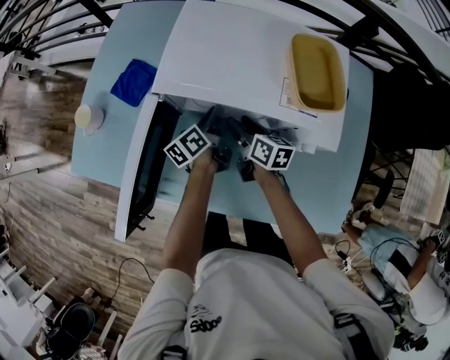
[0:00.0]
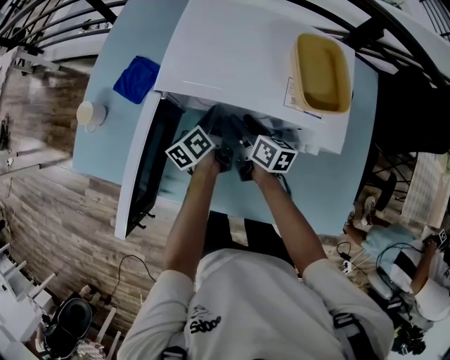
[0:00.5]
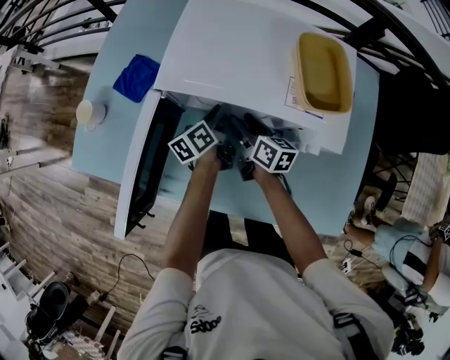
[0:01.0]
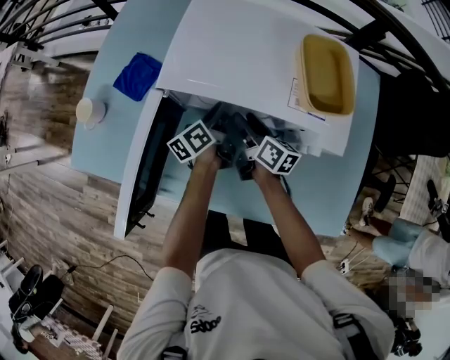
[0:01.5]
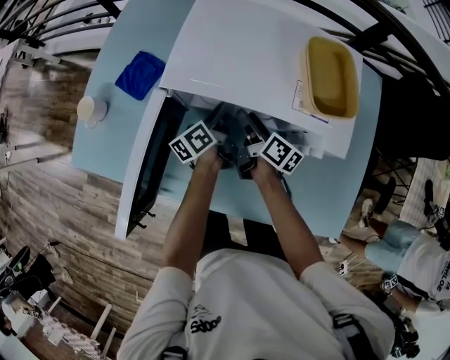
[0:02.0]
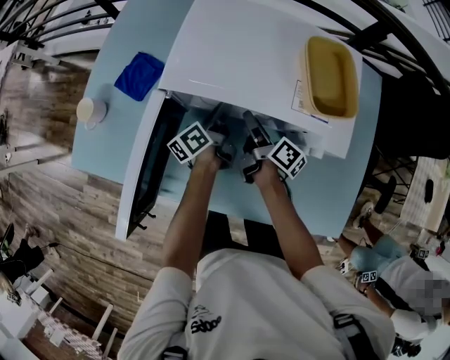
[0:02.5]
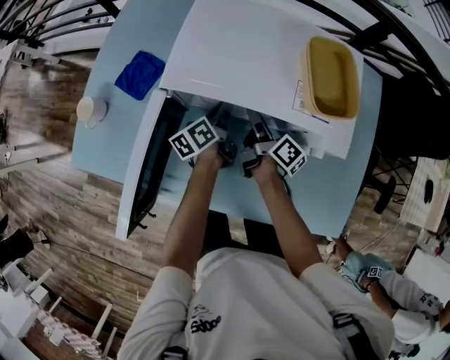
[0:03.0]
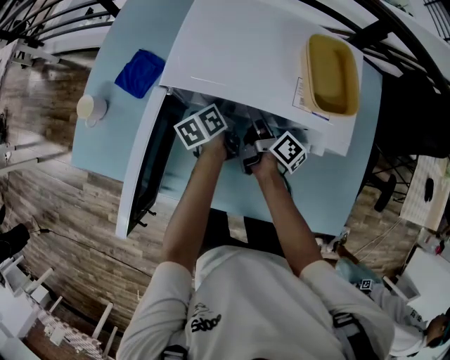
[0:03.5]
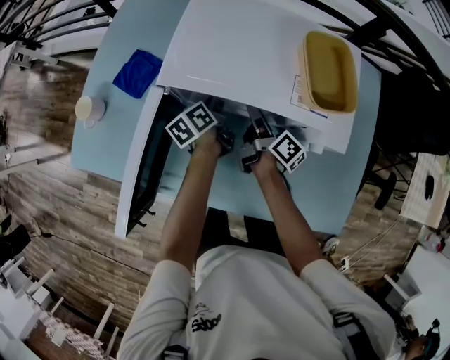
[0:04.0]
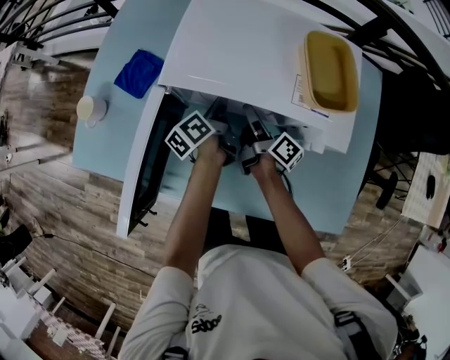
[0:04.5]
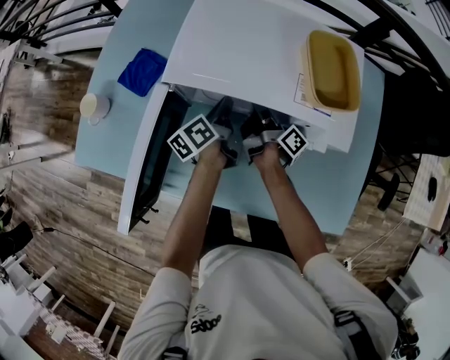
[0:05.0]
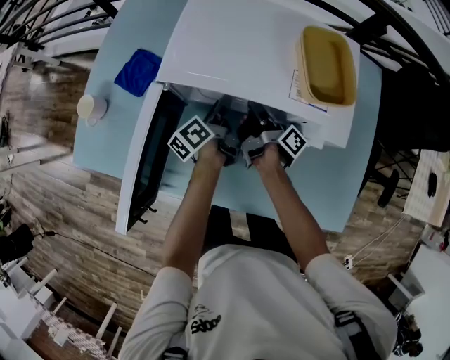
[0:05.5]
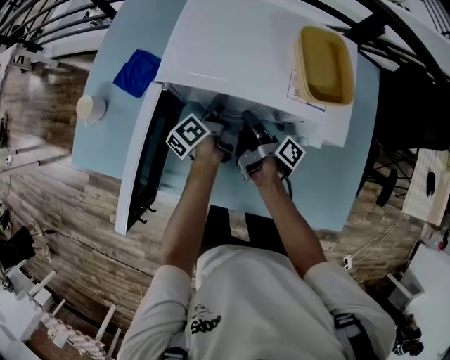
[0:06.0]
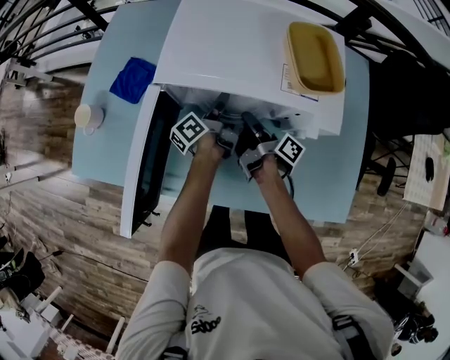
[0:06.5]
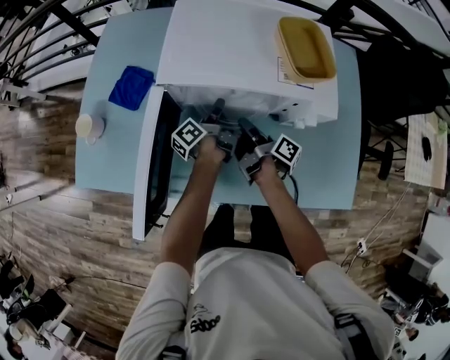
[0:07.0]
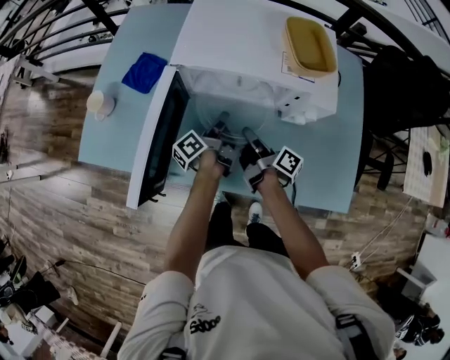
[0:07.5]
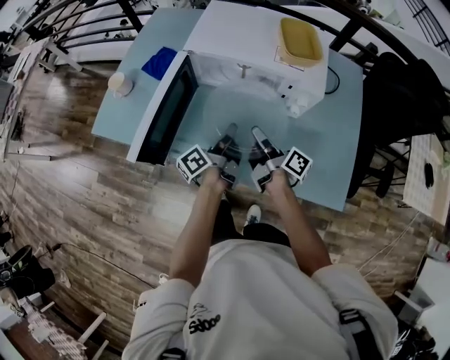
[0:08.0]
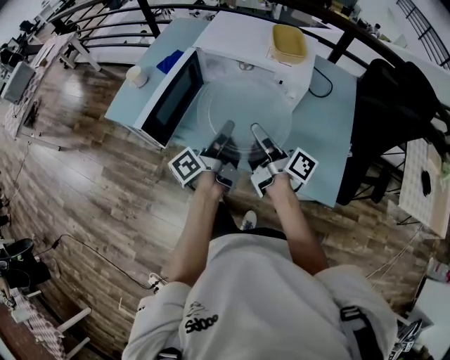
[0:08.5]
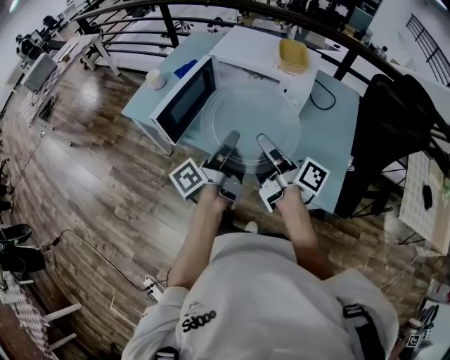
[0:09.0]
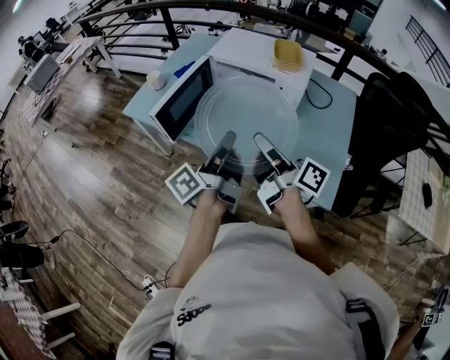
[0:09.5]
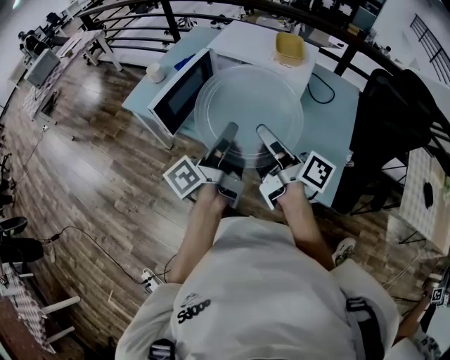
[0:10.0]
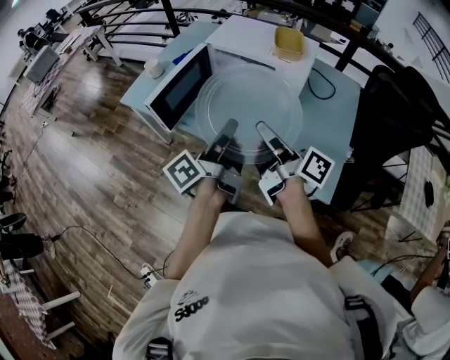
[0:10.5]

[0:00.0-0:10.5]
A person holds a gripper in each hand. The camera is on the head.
0:00.0 to 0:02.0: The right gripper turns by about 20 degrees.
0:02.0 to 0:04.0: The left gripper closes.
0:04.0 to 0:06.5: The right gripper changes its angle by approximately 20 degrees, and closes up. The left gripper swivels about 30 degrees.
0:06.5 to 0:08.5: Both grippers move backward and upward, roughly 35 cm. The left gripper turns by approximately 20 degrees. The right gripper swivels some 30 degrees.
0:08.5 to 0:10.5: Both grippers travel together backward and upward, roughly 15 cm.

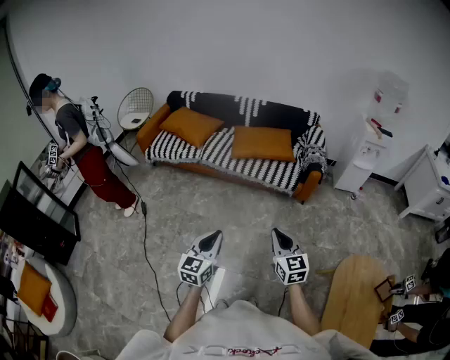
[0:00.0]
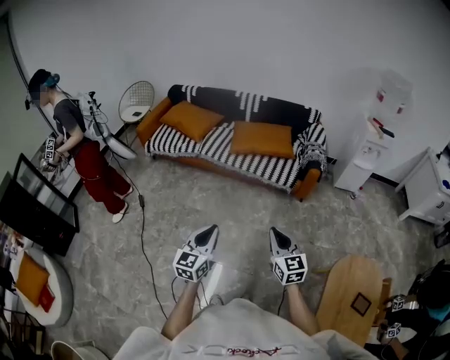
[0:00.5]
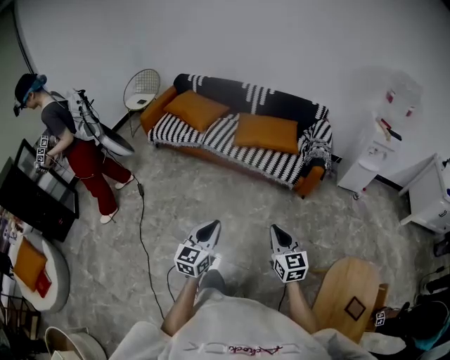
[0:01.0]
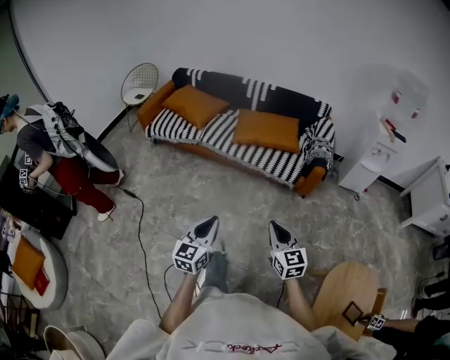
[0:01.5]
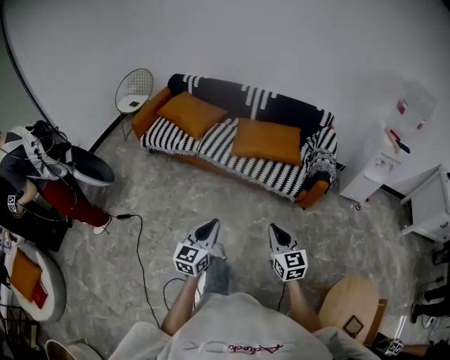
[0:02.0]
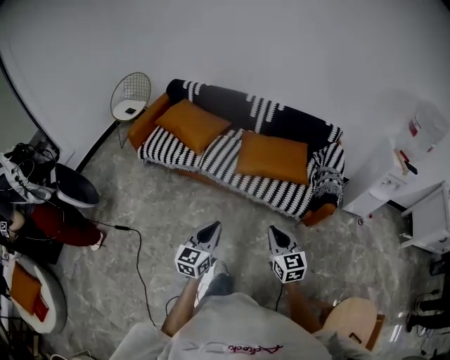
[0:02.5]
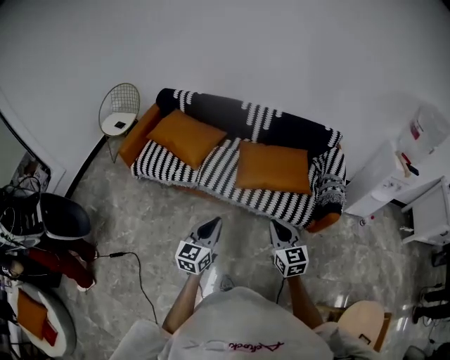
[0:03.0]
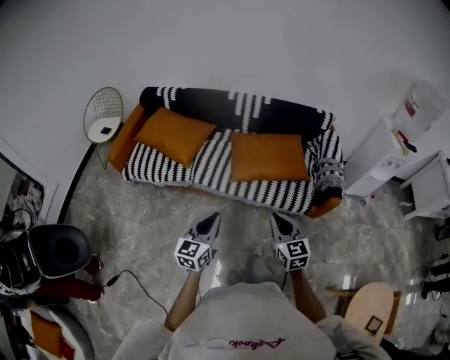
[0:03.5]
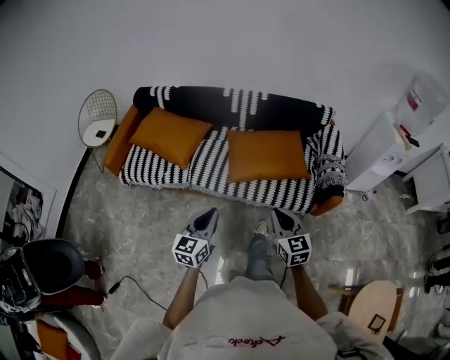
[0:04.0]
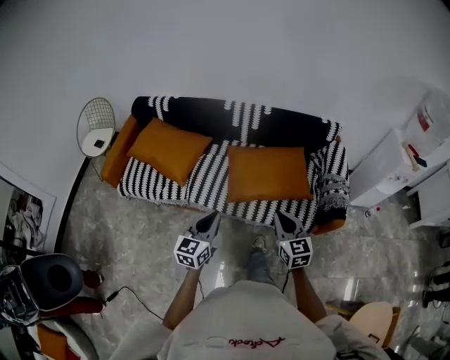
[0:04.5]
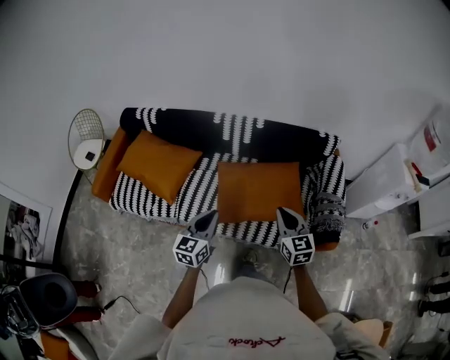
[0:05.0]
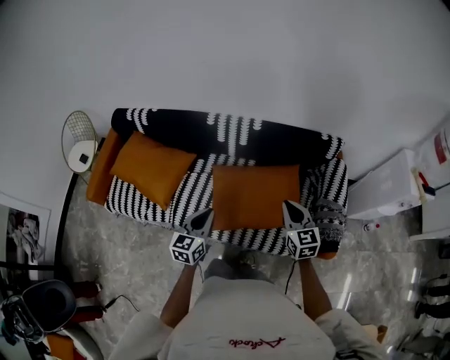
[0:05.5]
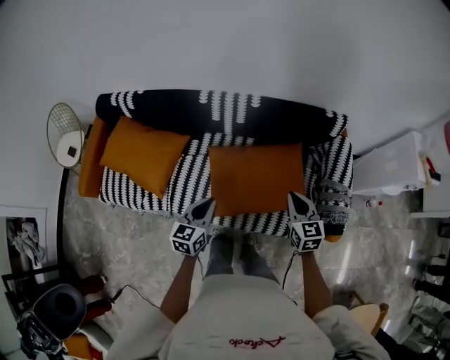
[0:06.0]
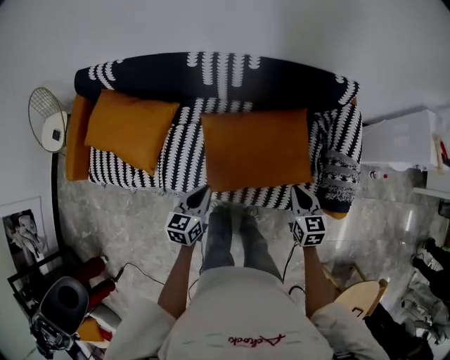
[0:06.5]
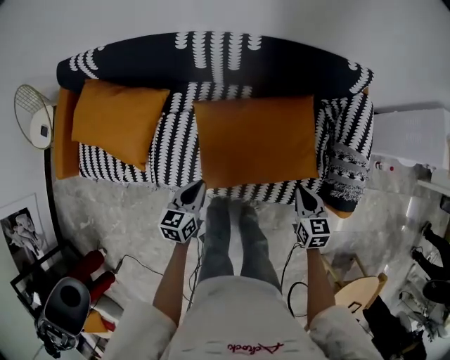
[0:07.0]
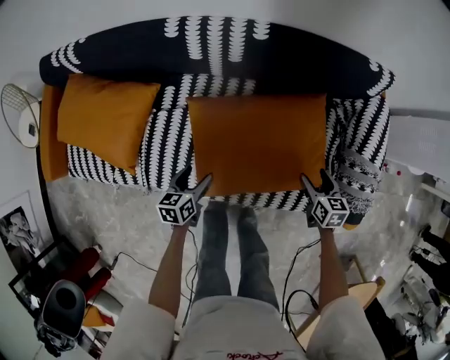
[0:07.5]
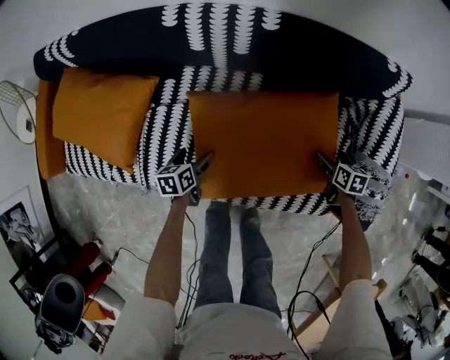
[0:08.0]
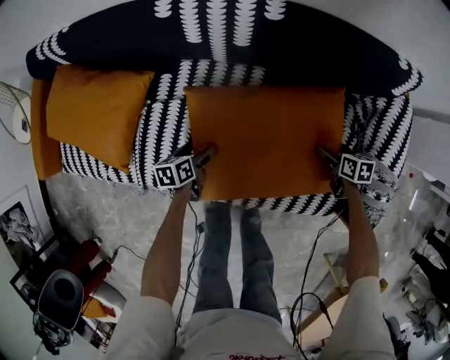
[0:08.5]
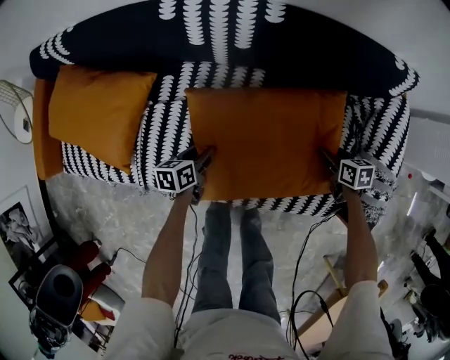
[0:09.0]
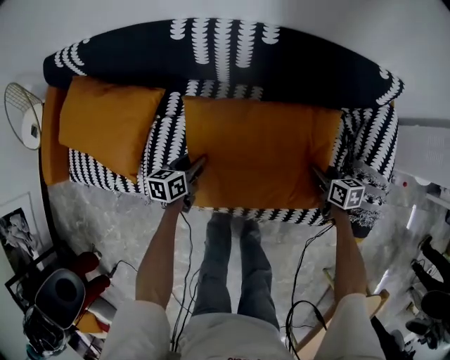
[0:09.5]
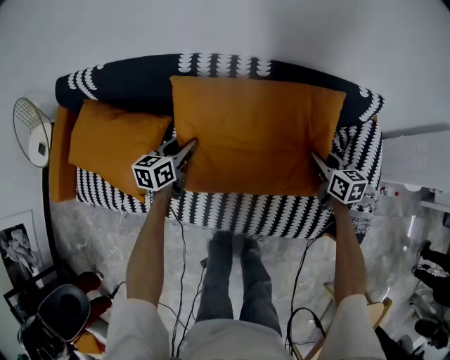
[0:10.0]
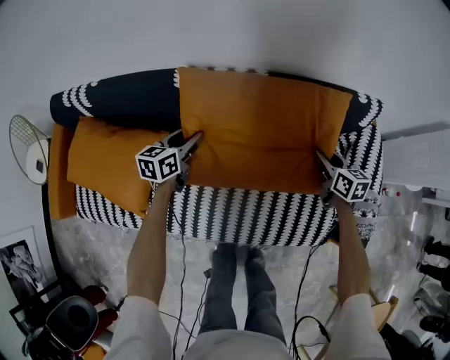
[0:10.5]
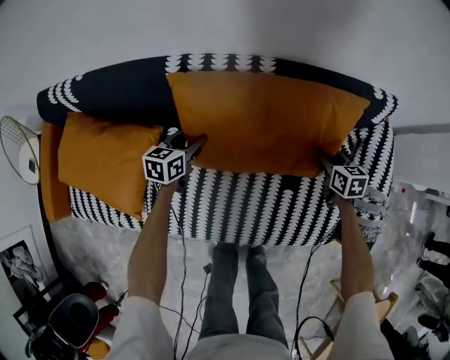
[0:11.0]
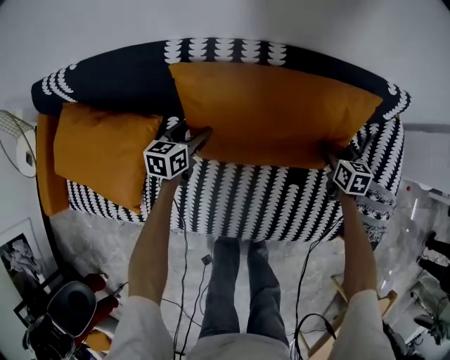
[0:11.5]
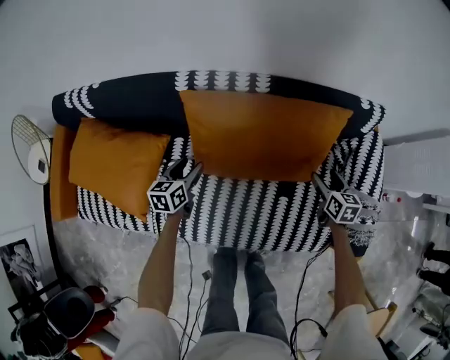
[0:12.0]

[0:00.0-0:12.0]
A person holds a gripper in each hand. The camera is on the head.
0:00.0 to 0:02.0: The two grippers go some 15 cm forward.
0:02.0 to 0:04.0: Both grippers travel together forward, approximately 35 cm.
0:04.0 to 0:06.0: The pair of grippers is taken forward, approximately 40 cm.
0:06.0 to 0:08.0: The grippers both shift downward by about 35 cm. The right gripper tips its fingers downward by approximately 30 degrees, and opens up, while the left gripper changes its angle by some 40 degrees, and opens.
0:08.0 to 0:10.0: The right gripper shifts about 20 cm upward, to the left and forward, rotates some 20 degrees, and closes, while the left gripper shifts about 20 cm upward and forward, changes its angle by approximately 30 degrees, and closes up.
0:10.0 to 0:12.0: The left gripper shifts some 5 cm downward. Meanwhile the right gripper is displaced downward and to the right by roughly 10 cm, and opens its fingers.

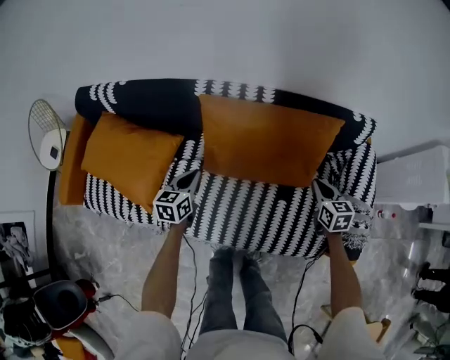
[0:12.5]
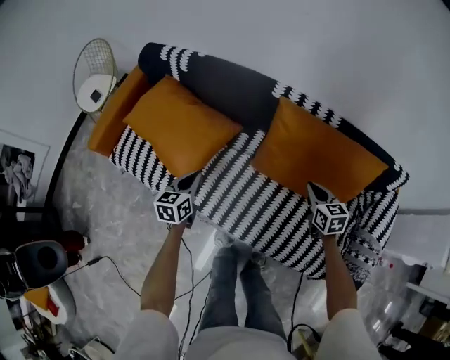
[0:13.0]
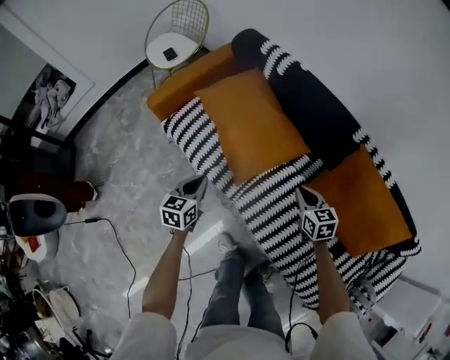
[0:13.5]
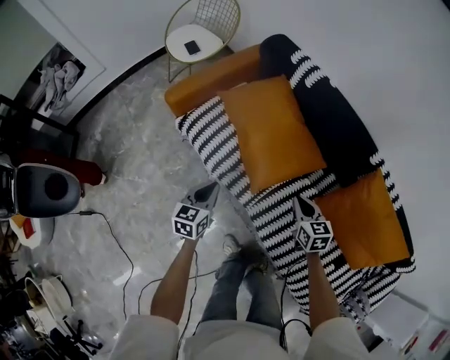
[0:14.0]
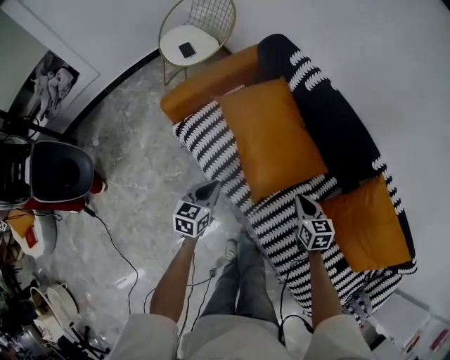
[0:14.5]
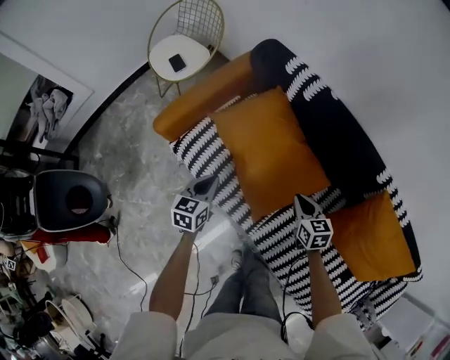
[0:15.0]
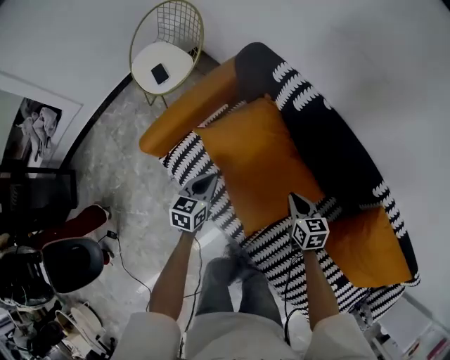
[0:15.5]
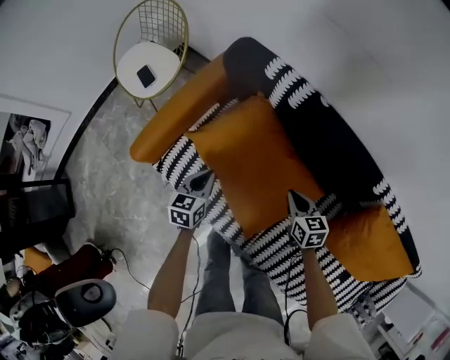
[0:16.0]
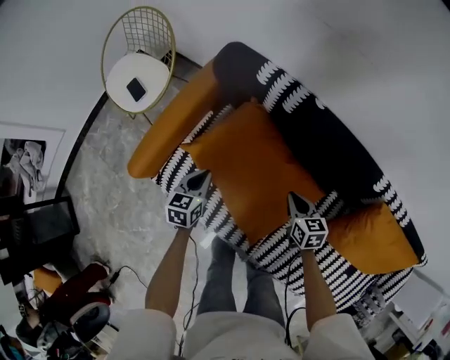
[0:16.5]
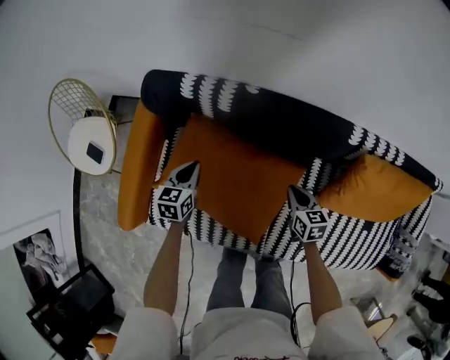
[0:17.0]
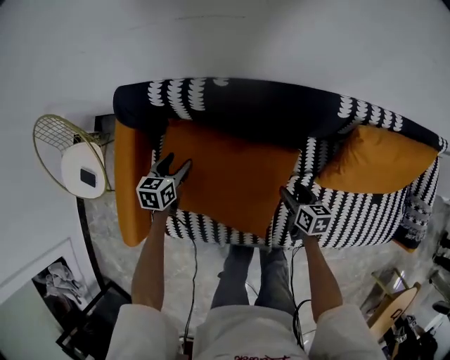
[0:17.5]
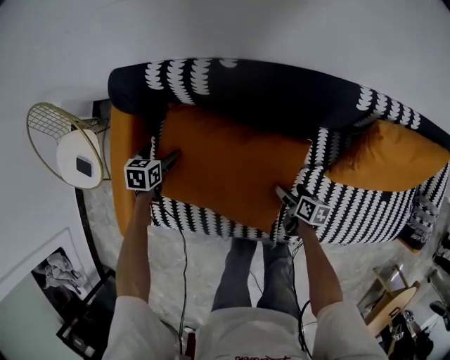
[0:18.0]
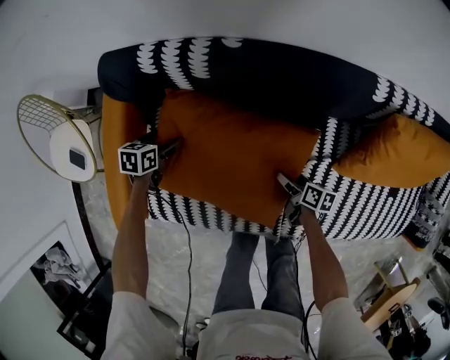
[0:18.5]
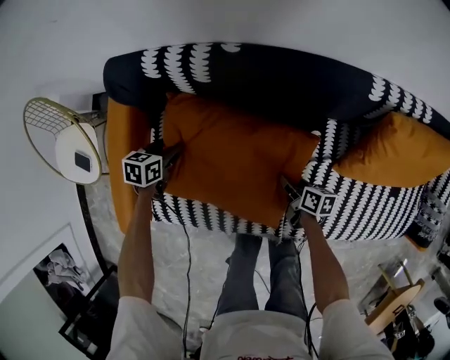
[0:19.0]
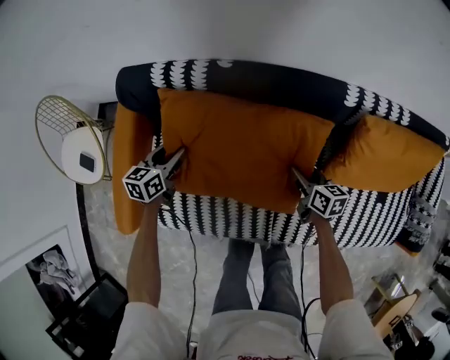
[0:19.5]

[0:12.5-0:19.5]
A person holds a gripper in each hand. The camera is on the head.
0:12.5 to 0:14.5: Both grippers are carried about 60 cm. The right gripper turns by some 50 degrees. The left gripper rotates some 40 degrees.
0:14.5 to 0:16.0: The two grippers go some 25 cm forward.
0:16.0 to 0:17.5: The left gripper moves approximately 25 cm, rotates some 30 degrees, and opens its fingers. The right gripper is displaced downward by roughly 10 cm, swivels roughly 50 degrees, and opens.
0:17.5 to 0:19.5: The right gripper goes downward and returns, approximately 15 cm each way, and opens, then closes once more, while the left gripper goes downward and returns, some 10 cm each way, and opens and closes again.
